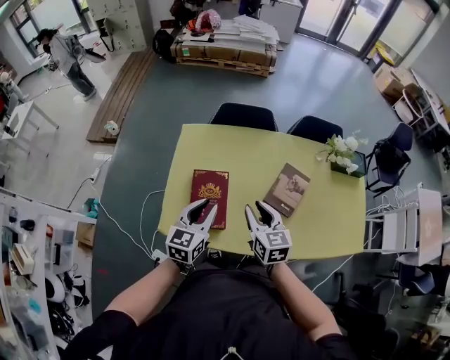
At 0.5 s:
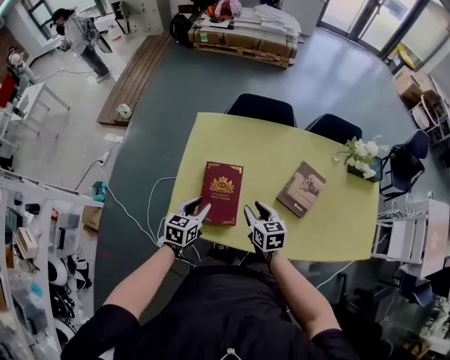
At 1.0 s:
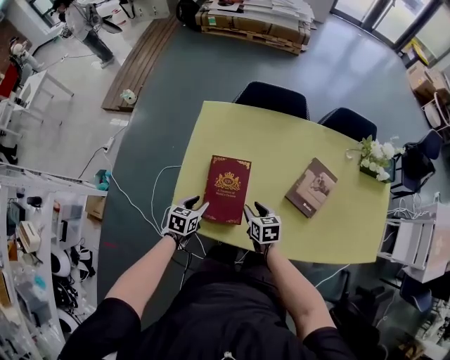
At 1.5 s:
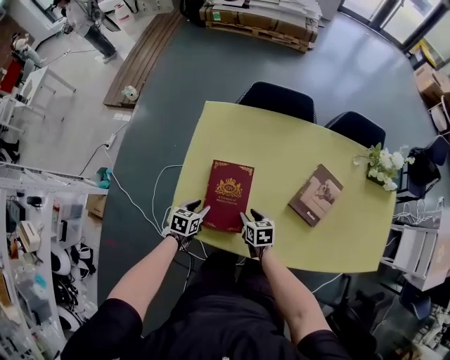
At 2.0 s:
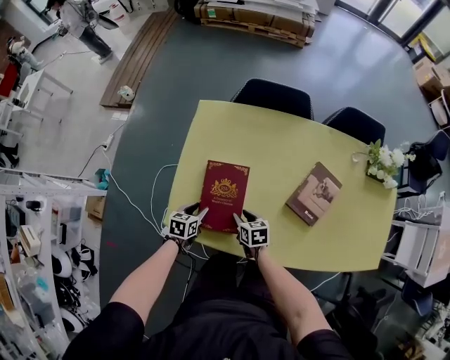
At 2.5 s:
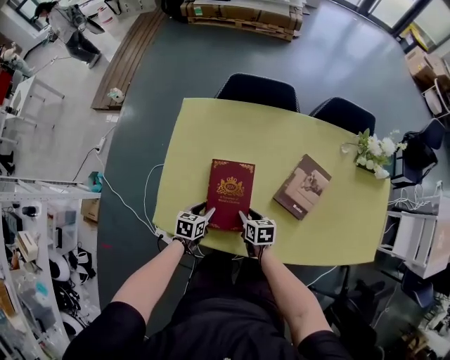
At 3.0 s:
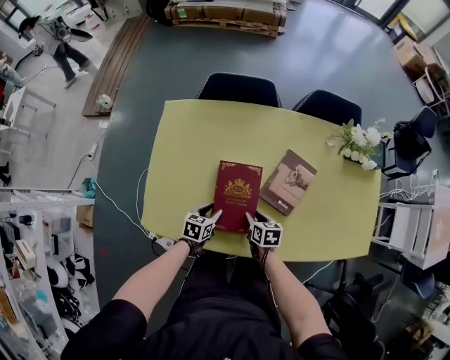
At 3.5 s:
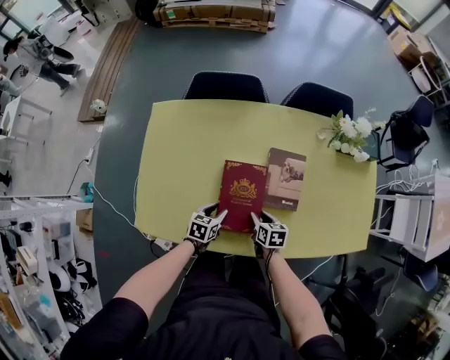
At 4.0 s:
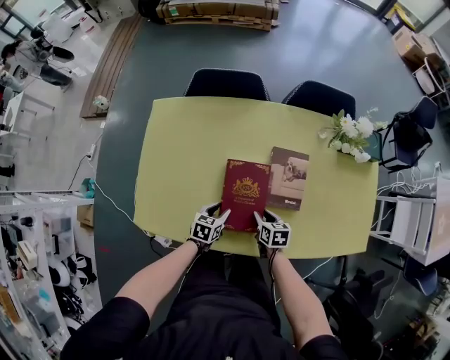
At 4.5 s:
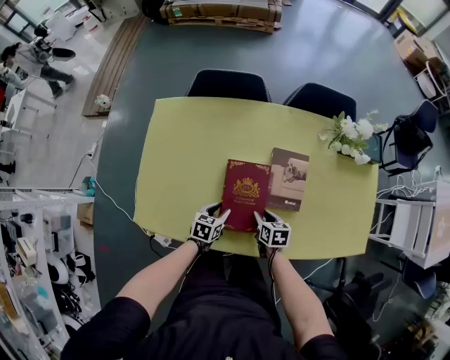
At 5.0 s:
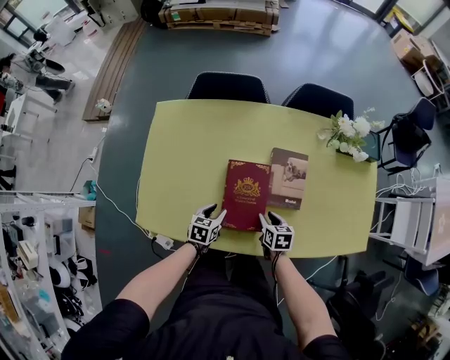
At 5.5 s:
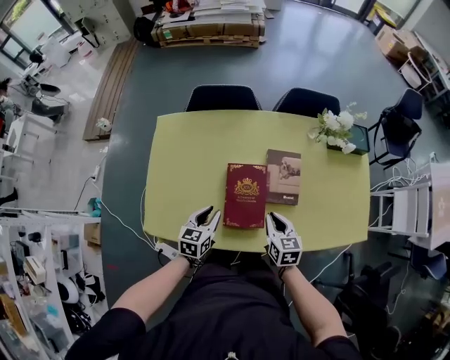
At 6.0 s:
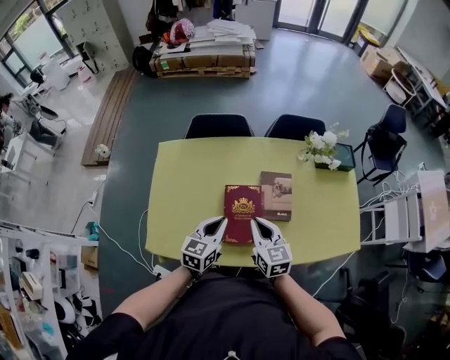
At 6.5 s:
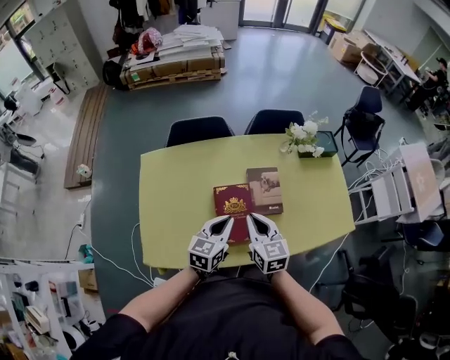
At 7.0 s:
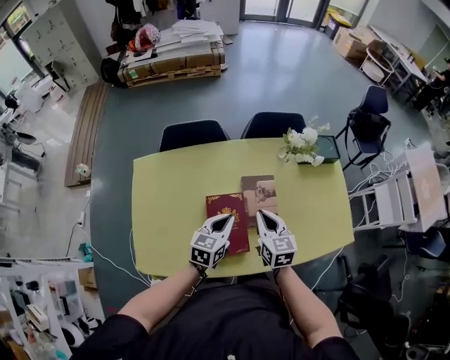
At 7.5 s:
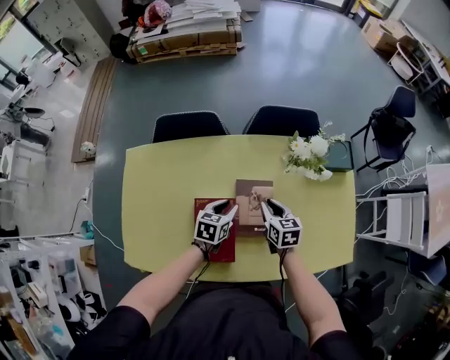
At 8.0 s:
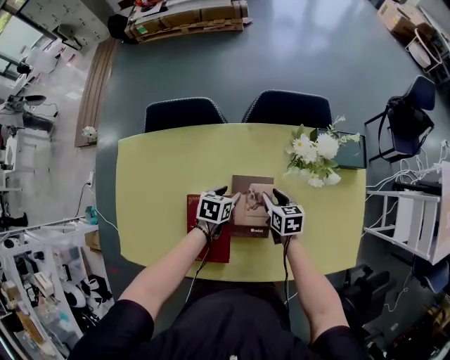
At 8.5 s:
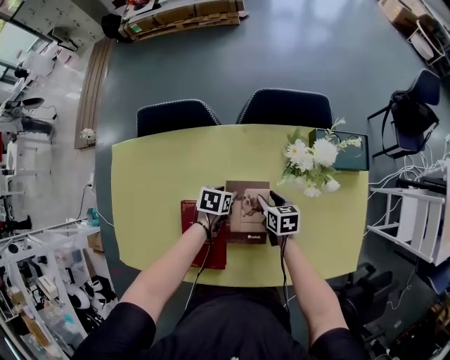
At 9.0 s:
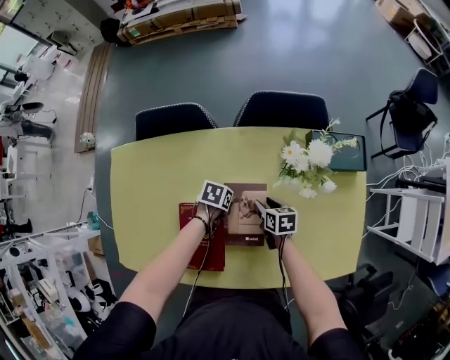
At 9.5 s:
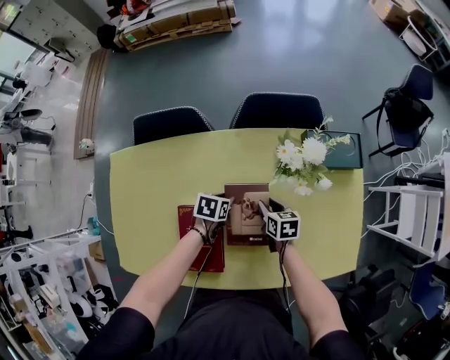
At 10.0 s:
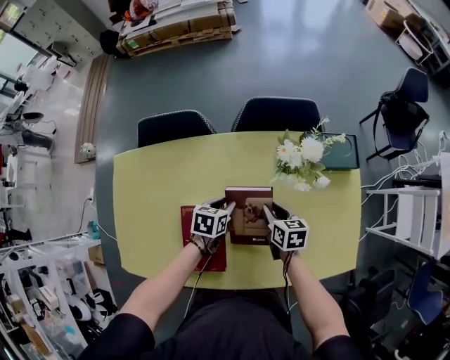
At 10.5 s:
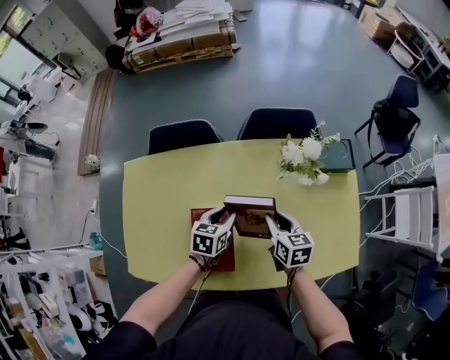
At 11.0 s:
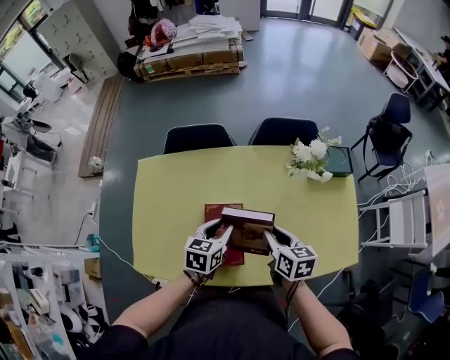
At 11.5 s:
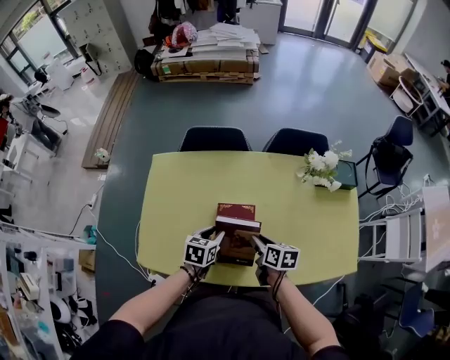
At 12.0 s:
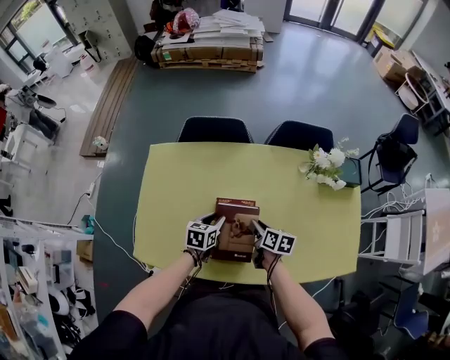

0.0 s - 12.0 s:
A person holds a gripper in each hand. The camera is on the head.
0.0 s - 2.0 s: Both grippers travel together downward, about 30 cm. The left gripper tilts its fingers some 30 degrees downward; the right gripper changes its angle by approximately 40 degrees.
2.0 s - 4.0 s: The two grippers go approximately 25 cm to the right.
4.0 s - 6.0 s: The two grippers go about 25 cm upward. The right gripper changes its angle by roughly 40 degrees, and closes its fingers; the left gripper rotates about 30 degrees, and closes.
6.0 s - 8.0 s: Both grippers move forward, downward and to the right, some 35 cm. The right gripper rotates approximately 30 degrees, and opens its fingers. Meanwhile the left gripper tips its fingers downward by approximately 30 degrees, and opens its fingers.
8.0 s - 10.0 s: The right gripper ends up some 5 cm from where it was, while the left gripper reaches approximately 5 cm downward, then returns.
10.0 s - 12.0 s: The two grippers go roughly 20 cm to the left and backward.

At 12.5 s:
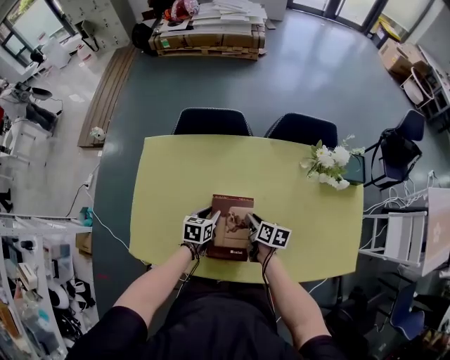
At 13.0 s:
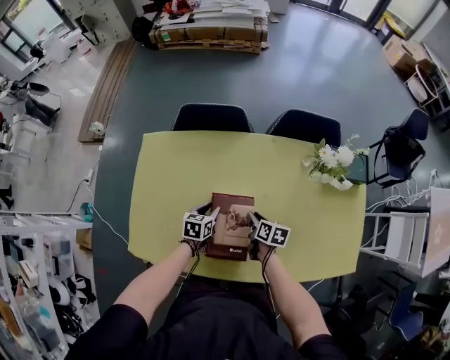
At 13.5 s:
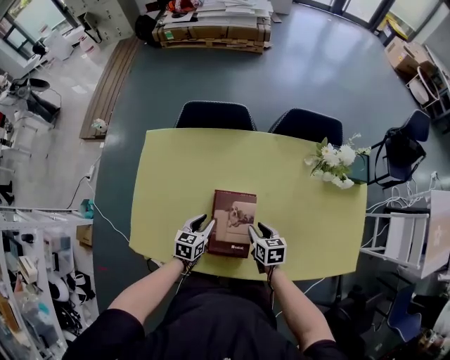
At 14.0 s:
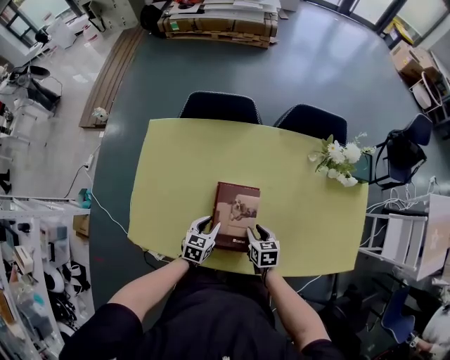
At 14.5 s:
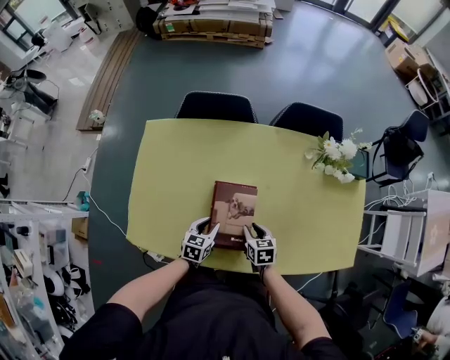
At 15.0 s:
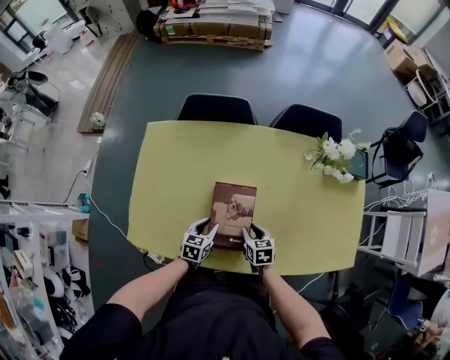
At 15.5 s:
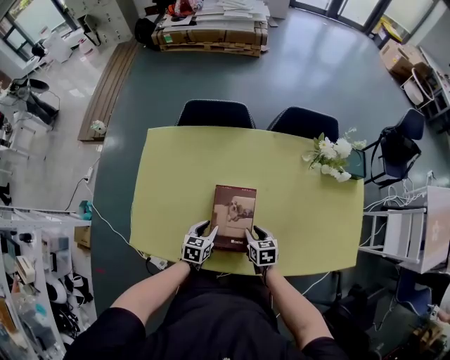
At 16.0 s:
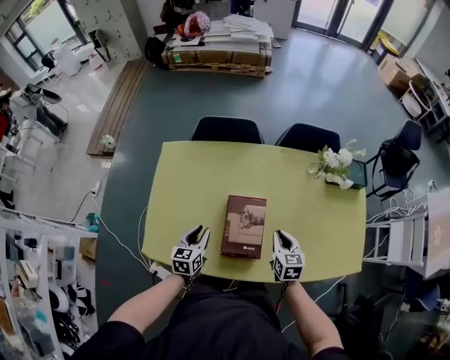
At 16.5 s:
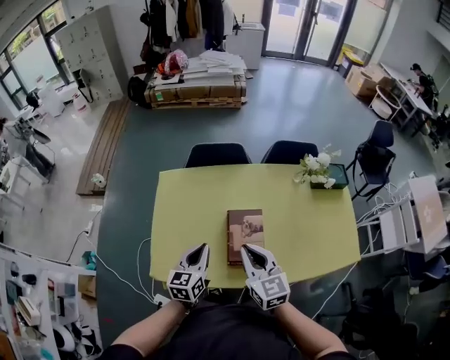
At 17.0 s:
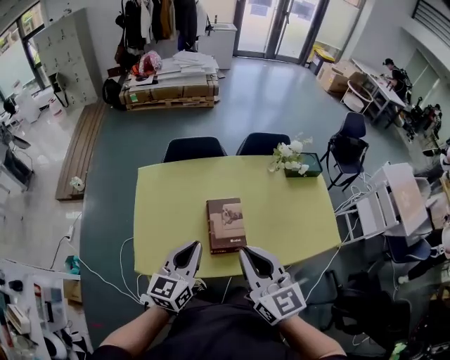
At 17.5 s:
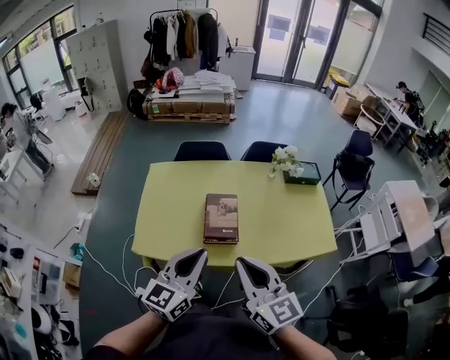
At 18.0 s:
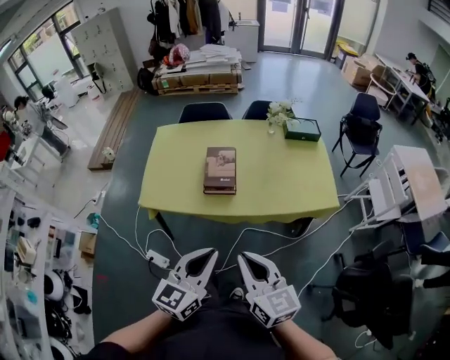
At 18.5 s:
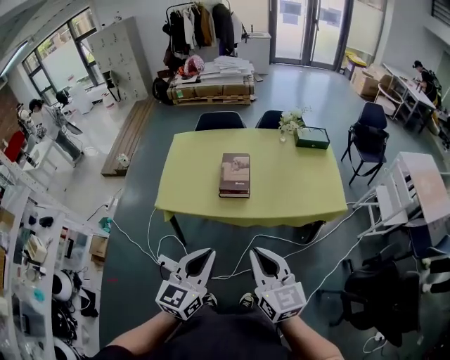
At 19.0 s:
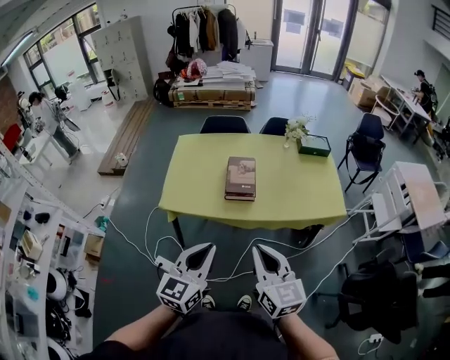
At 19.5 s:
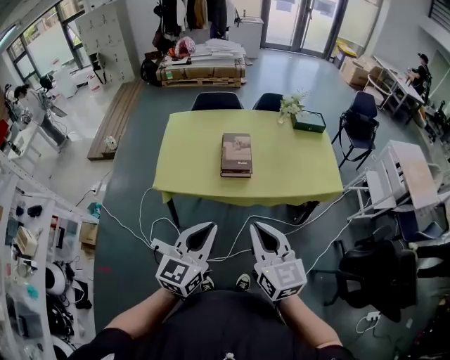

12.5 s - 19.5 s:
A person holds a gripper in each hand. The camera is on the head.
12.5 s - 14.5 s: The grippers both shift backward by some 10 cm. The right gripper changes its angle by about 30 degrees.
14.5 s - 16.0 s: The right gripper shifts some 10 cm upward, and closes its fingers; the left gripper is displaced upward and to the left by some 15 cm.
16.0 s - 17.5 s: Both grippers travel together upward and backward, some 50 cm. The right gripper tilts its fingers roughly 40 degrees upward, while the left gripper tips its fingers upward by about 30 degrees, and closes up.
17.5 s - 19.5 s: Both grippers move backward, some 20 cm.

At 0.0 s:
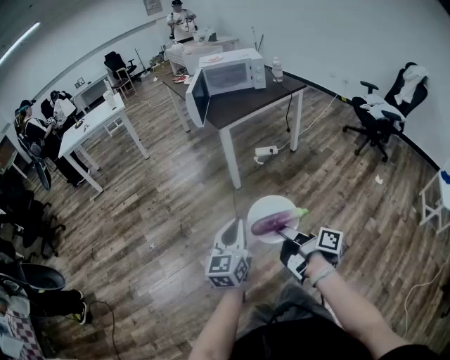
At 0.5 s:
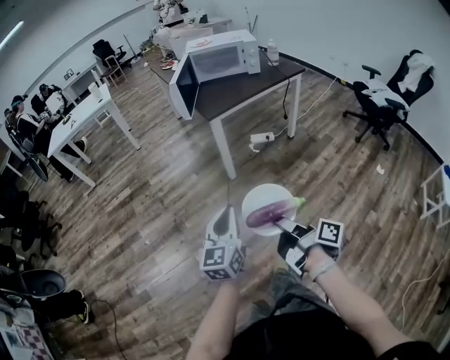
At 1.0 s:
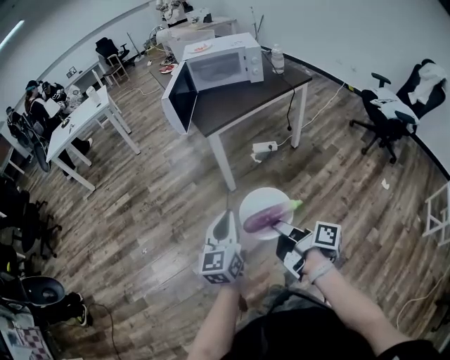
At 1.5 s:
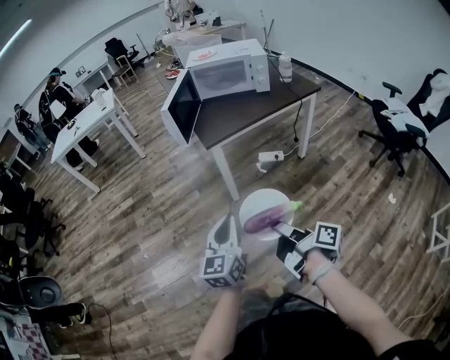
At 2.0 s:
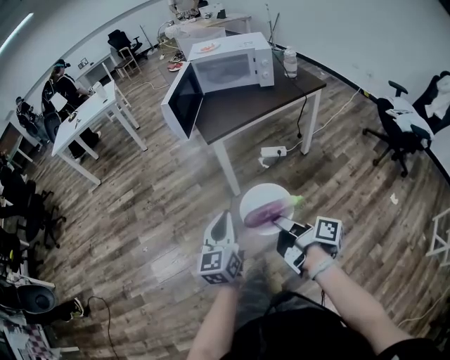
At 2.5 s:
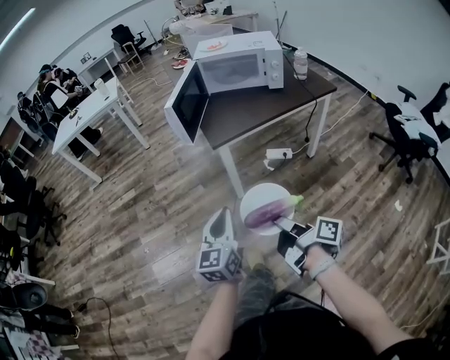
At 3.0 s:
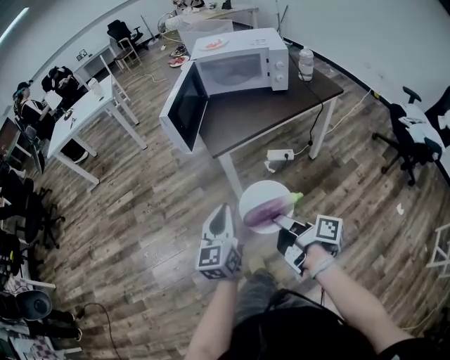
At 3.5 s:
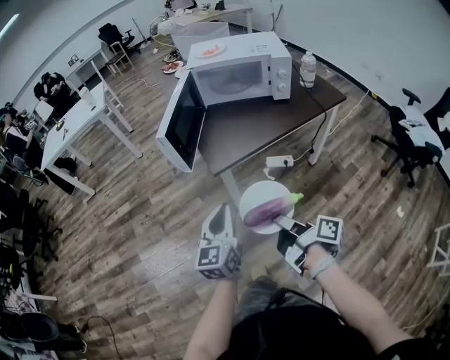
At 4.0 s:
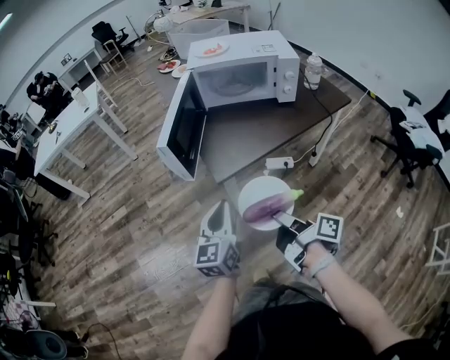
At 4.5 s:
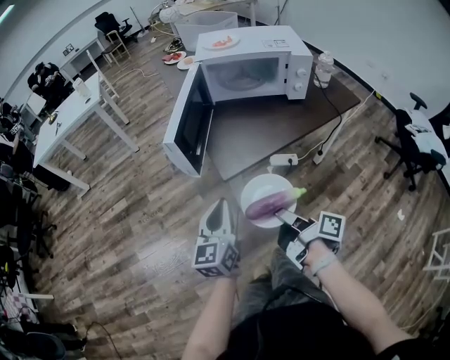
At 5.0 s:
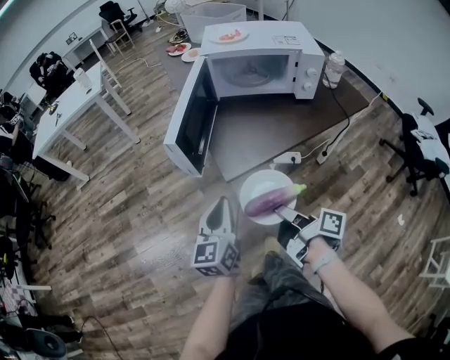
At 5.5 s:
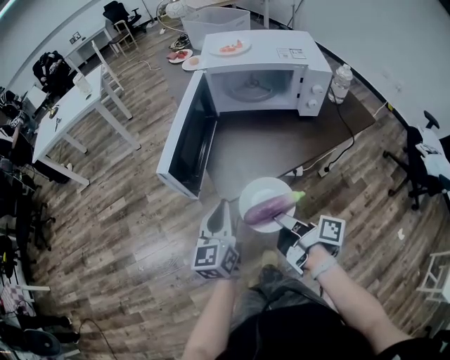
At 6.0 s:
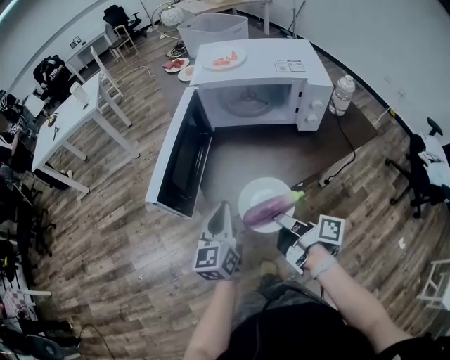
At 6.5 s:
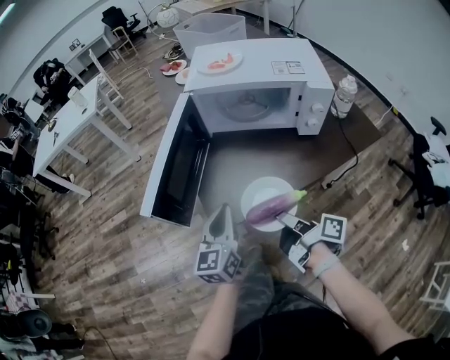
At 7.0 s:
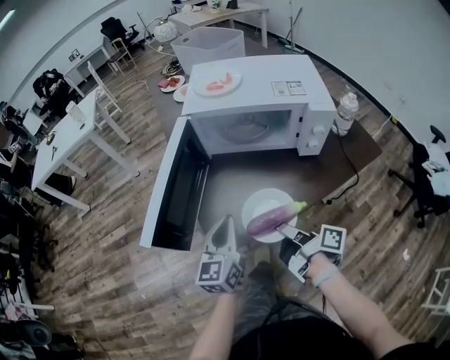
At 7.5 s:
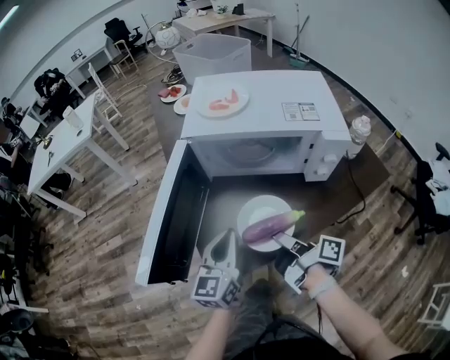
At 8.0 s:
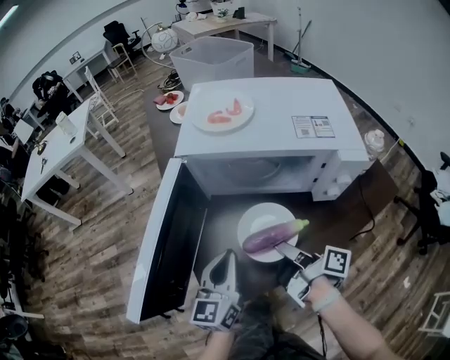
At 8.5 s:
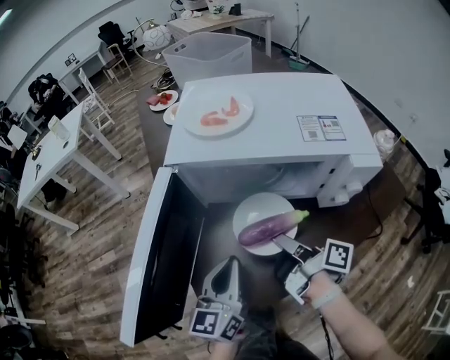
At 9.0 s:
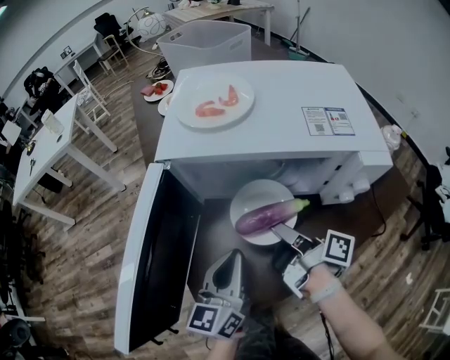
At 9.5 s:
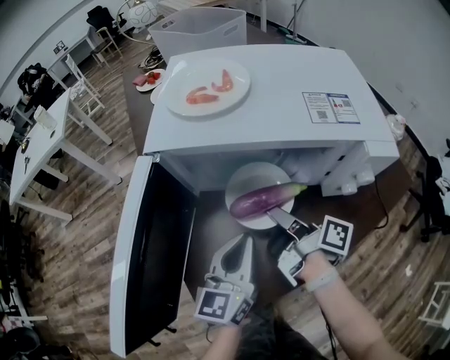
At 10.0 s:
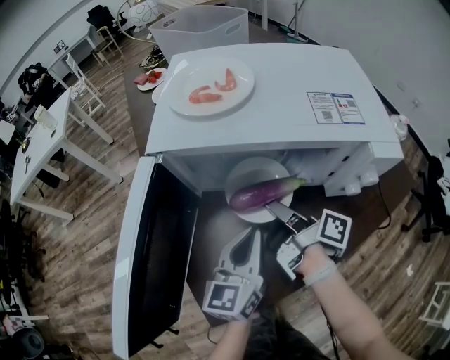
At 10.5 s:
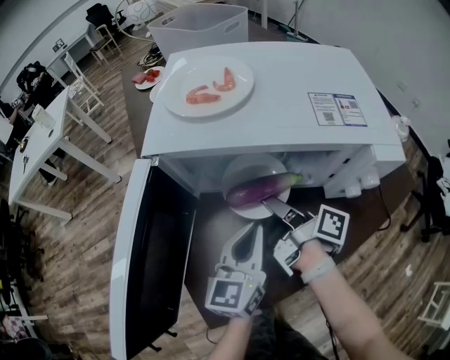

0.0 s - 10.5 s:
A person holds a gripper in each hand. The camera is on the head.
0.0 s - 2.0 s: Both grippers move forward and to the right, approximately 30 cm.
2.0 s - 4.0 s: The grippers both shift forward by about 25 cm.
4.0 s - 6.5 s: The two grippers go some 20 cm forward.
6.5 s - 8.5 s: The left gripper heads forward, covering about 15 cm, while the right gripper shifts approximately 20 cm forward.
8.5 s - 10.5 s: The left gripper heads to the right and forward, covering approximately 10 cm. The right gripper travels forward by approximately 10 cm.